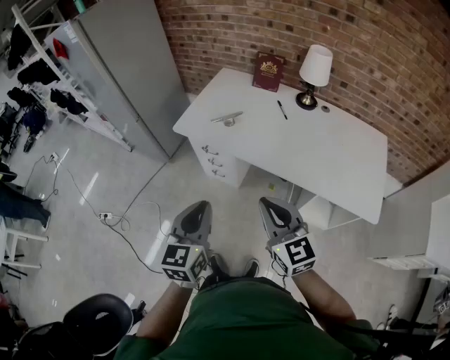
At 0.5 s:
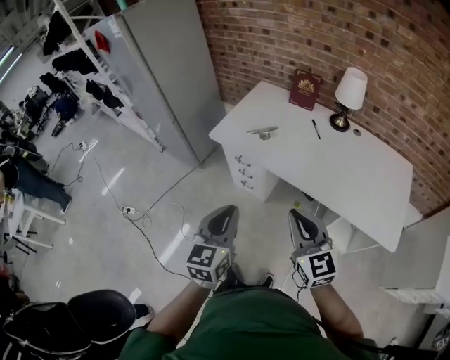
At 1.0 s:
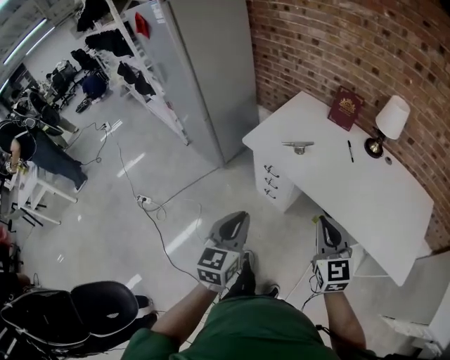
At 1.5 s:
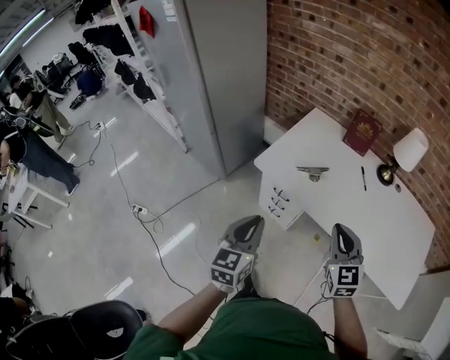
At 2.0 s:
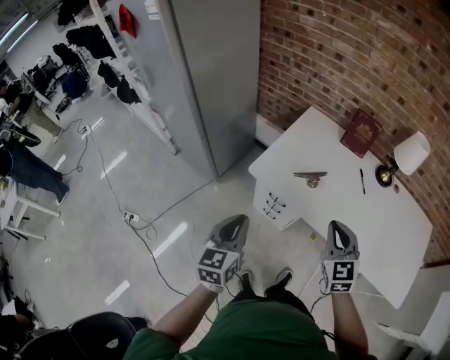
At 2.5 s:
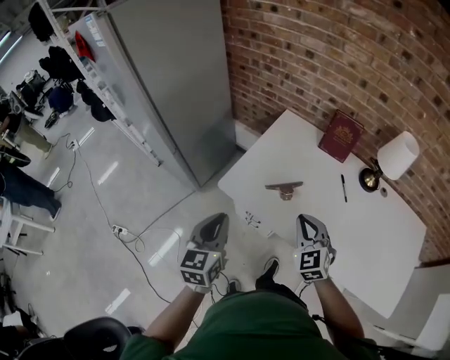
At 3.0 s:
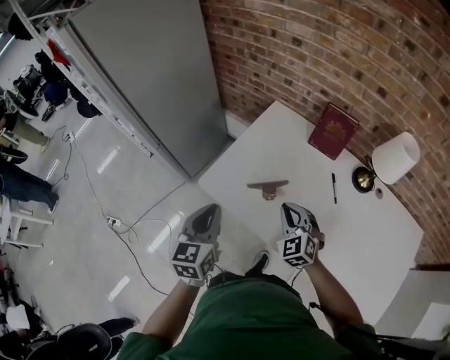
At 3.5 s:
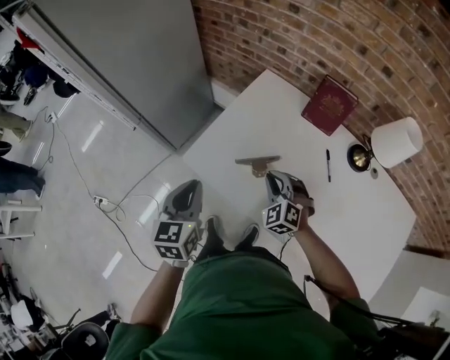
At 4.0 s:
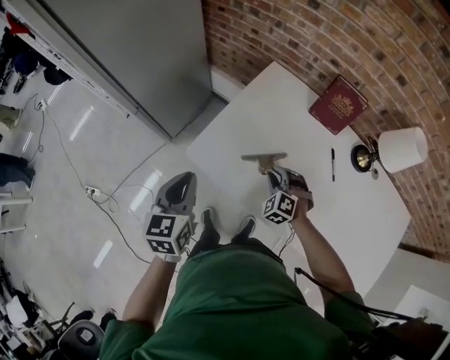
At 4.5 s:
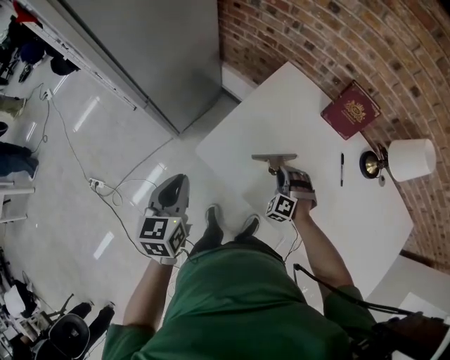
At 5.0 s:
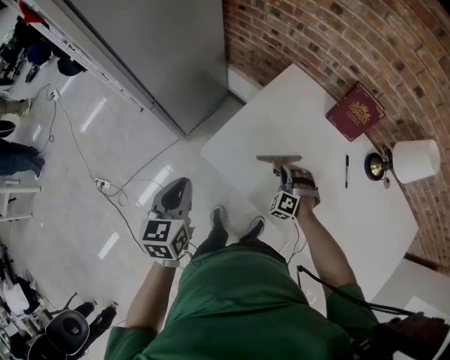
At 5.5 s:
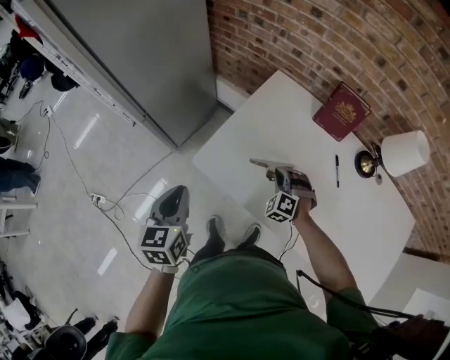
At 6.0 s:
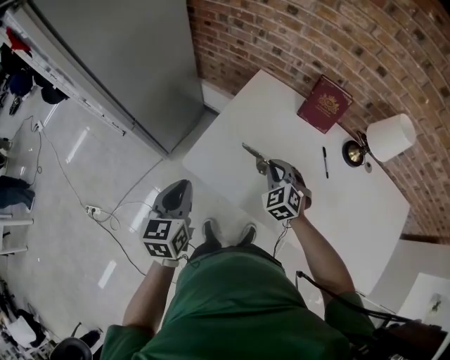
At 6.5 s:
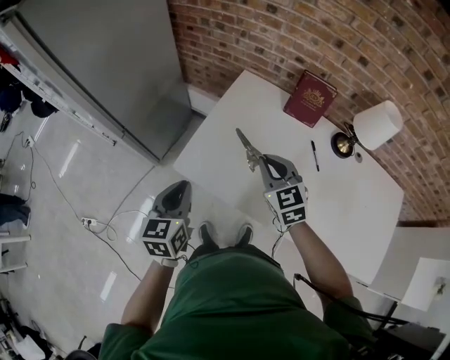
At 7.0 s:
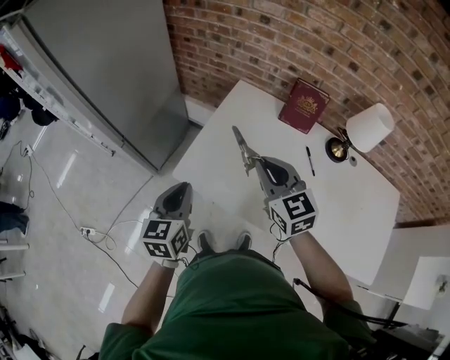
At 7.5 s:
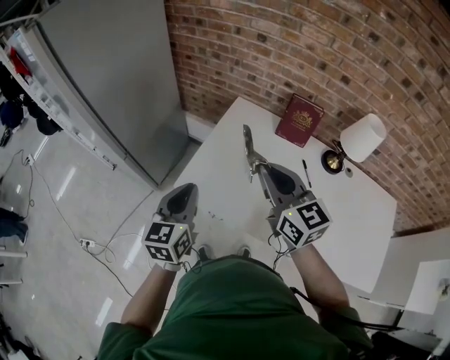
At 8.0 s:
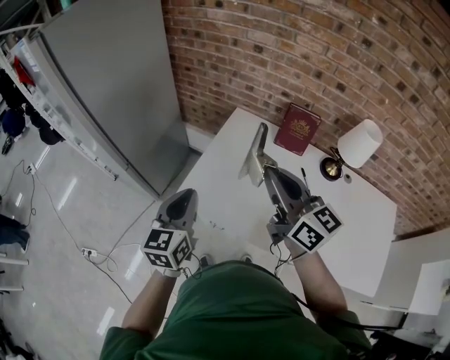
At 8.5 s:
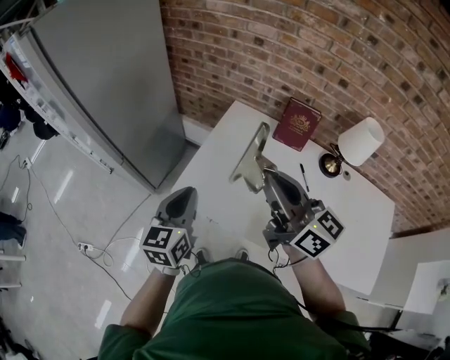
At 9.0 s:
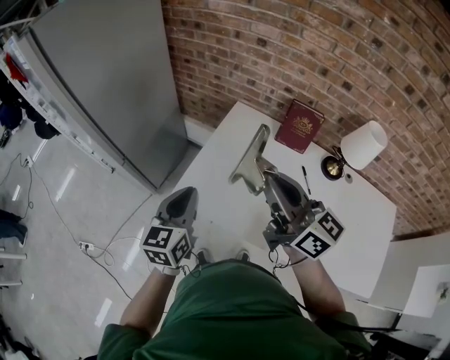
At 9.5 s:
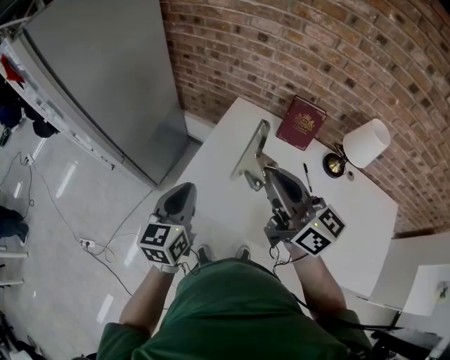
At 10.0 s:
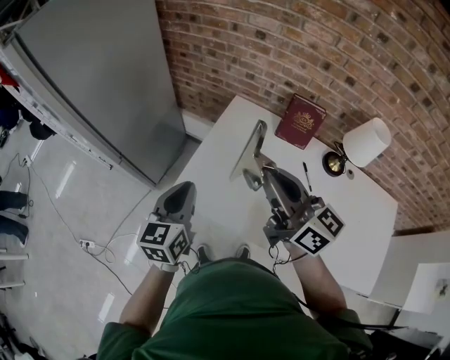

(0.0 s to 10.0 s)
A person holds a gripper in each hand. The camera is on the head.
0.0 s - 2.0 s: The right gripper is displaced forward by roughly 25 cm, and swivels approximately 20 degrees; the left gripper travels forward and to the left by roughly 30 cm.
2.0 s - 4.0 s: The right gripper travels downward and forward by approximately 35 cm, twists roughly 40 degrees counterclockwise, seen from behind, and opens up. The left gripper heads forward, covering some 20 cm.
4.0 s - 6.0 s: The right gripper shifts roughly 10 cm upward, and swivels some 20 degrees.
6.0 s - 8.0 s: The right gripper moves upward, roughly 30 cm, and tips its fingers upward by approximately 40 degrees. Meanwhile the left gripper goes approximately 10 cm upward.
8.0 s - 10.0 s: The left gripper ends up some 5 cm from where it was.

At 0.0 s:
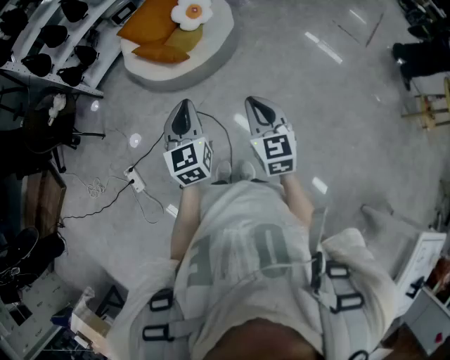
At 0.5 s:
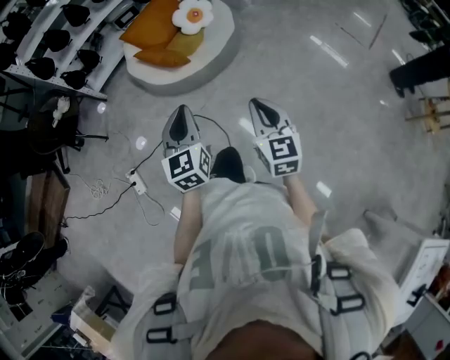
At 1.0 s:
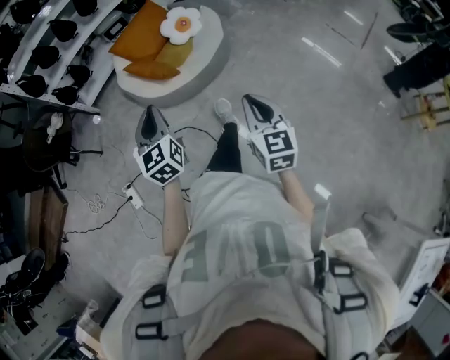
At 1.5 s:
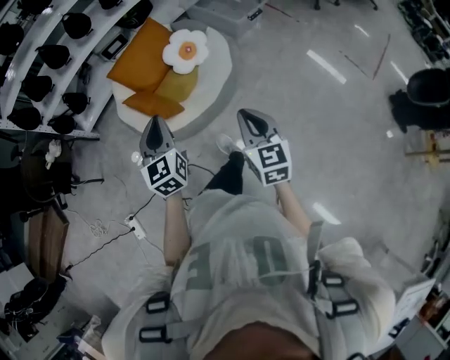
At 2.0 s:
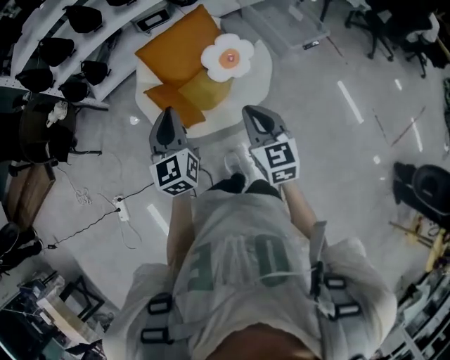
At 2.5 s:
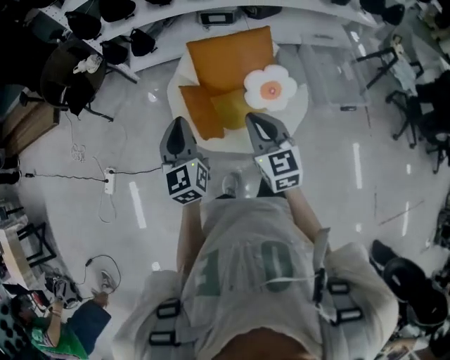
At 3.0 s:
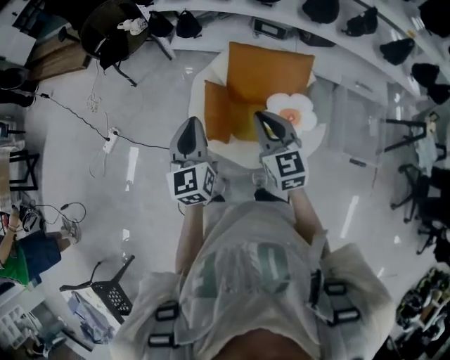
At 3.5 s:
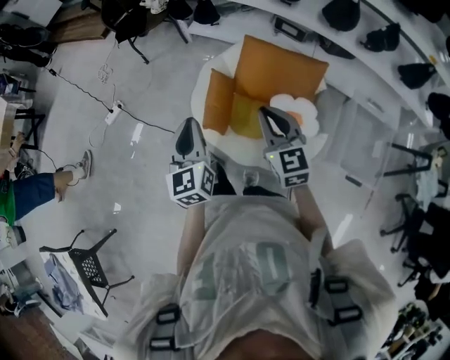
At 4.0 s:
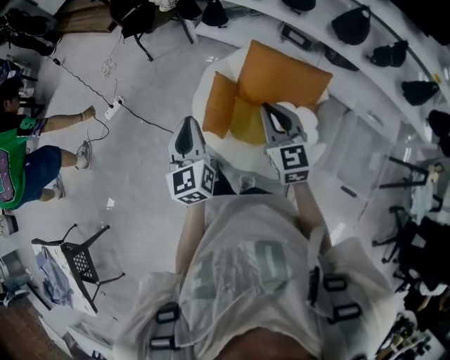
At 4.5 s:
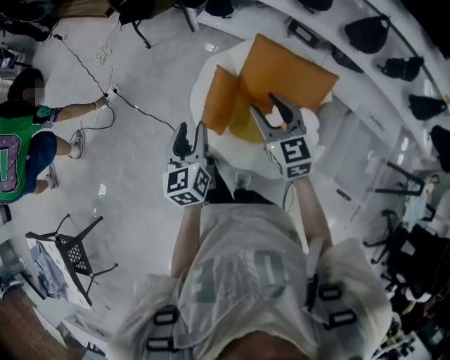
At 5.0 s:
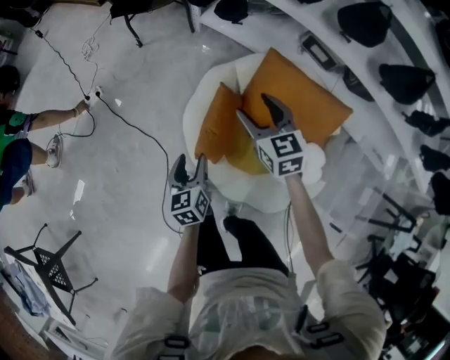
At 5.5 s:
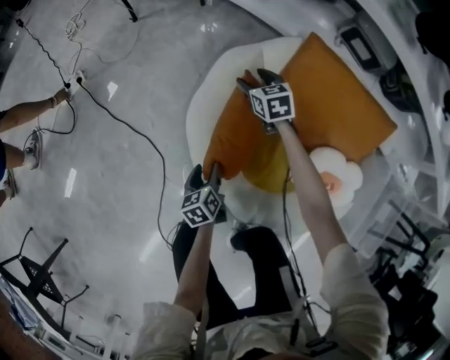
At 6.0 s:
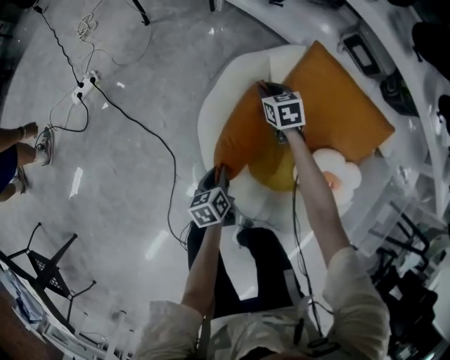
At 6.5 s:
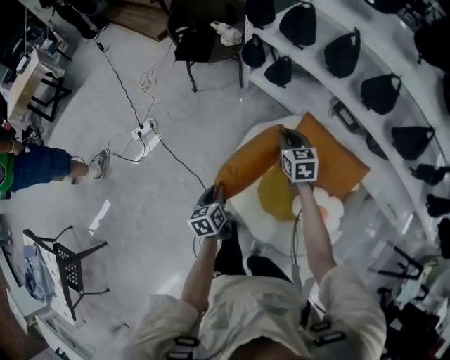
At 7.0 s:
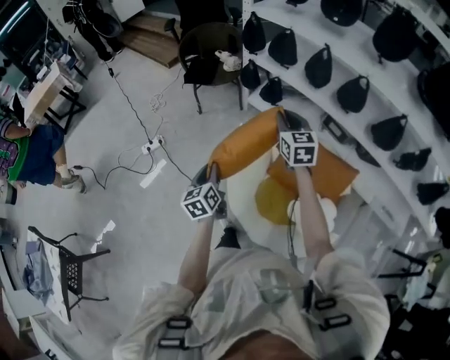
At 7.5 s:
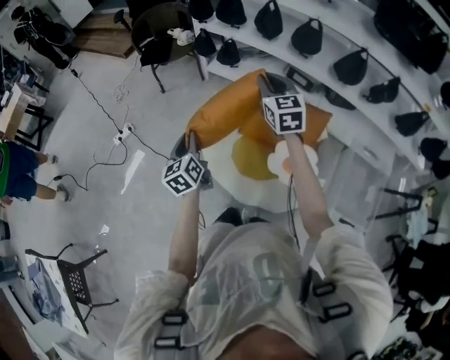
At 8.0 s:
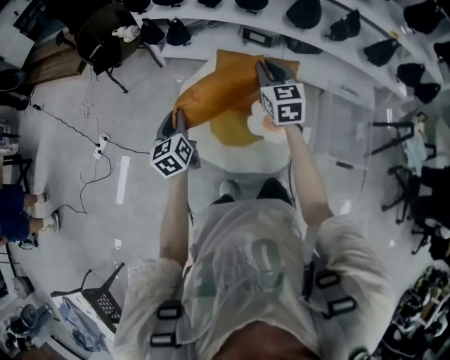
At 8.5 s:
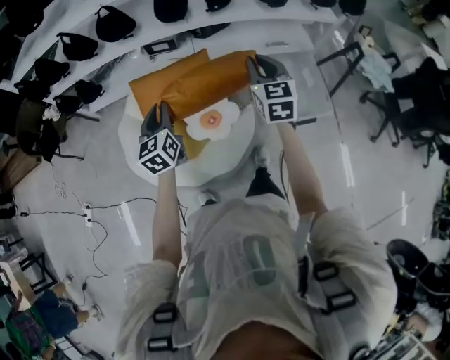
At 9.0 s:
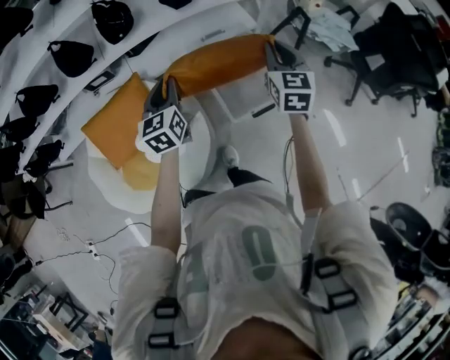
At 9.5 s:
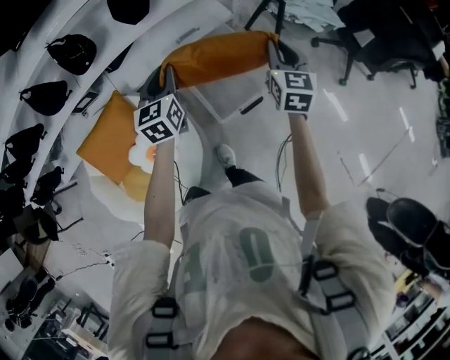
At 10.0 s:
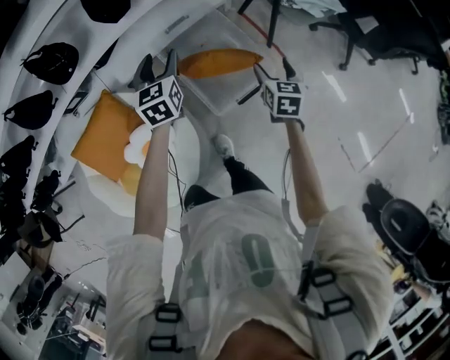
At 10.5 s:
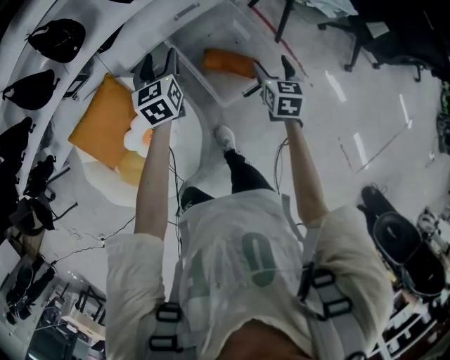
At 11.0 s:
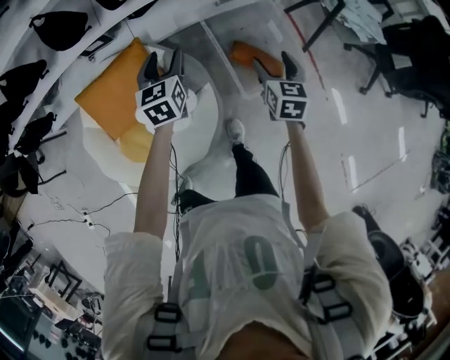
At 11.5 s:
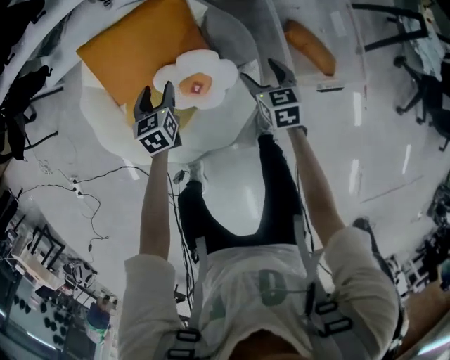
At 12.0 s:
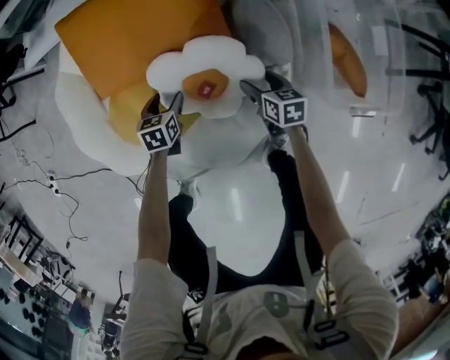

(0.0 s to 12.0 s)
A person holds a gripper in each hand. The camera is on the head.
0.0 s - 2.0 s: The pair of grippers is taken forward, approximately 50 cm. The right gripper rotates approximately 20 degrees, while the left gripper swivels about 20 degrees.
2.0 s - 4.0 s: The right gripper ends up roughly 25 cm from where it was, and swivels roughly 60 degrees. Meanwhile the left gripper shifts by roughly 5 cm, and turns by roughly 60 degrees.
4.0 s - 6.0 s: The right gripper is displaced downward and forward by some 60 cm, tips its fingers downward by approximately 40 degrees, and opens, then closes once more. The left gripper travels downward by about 50 cm, angles its fingers downward, by about 40 degrees, and opens, then closes once more.
6.0 s - 8.0 s: The left gripper heads upward, covering some 50 cm, and swivels approximately 40 degrees; the right gripper goes roughly 60 cm upward and backward, and tilts its fingers roughly 30 degrees upward.
8.0 s - 10.0 s: The two grippers travel together, about 90 cm. The left gripper swivels about 60 degrees, and opens its fingers. Meanwhile the right gripper turns by some 70 degrees, and opens.
10.0 s - 12.0 s: Both grippers are carried roughly 50 cm. The left gripper goes some 60 cm downward, and points its fingers approximately 30 degrees further downward. The right gripper changes its angle by some 50 degrees.

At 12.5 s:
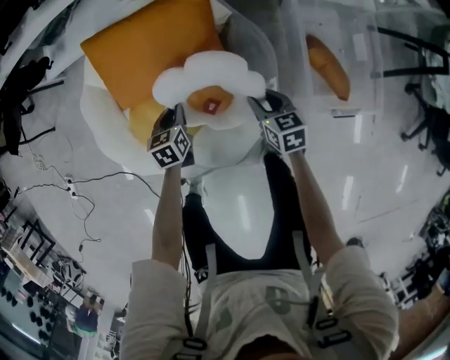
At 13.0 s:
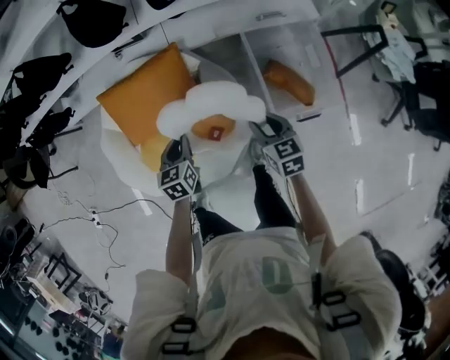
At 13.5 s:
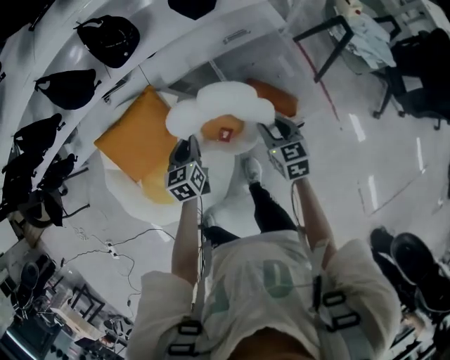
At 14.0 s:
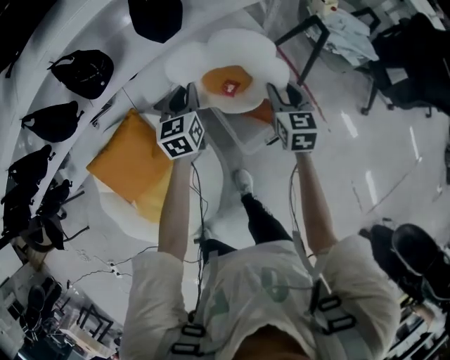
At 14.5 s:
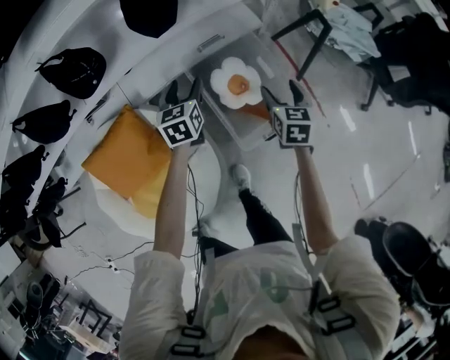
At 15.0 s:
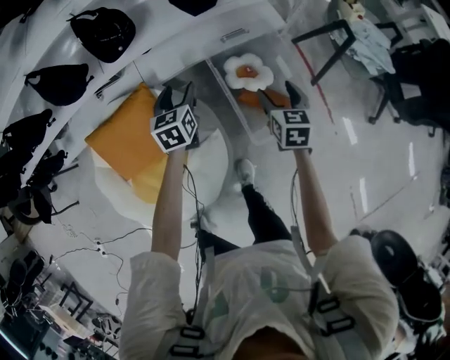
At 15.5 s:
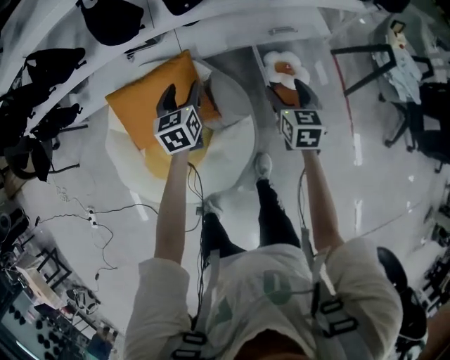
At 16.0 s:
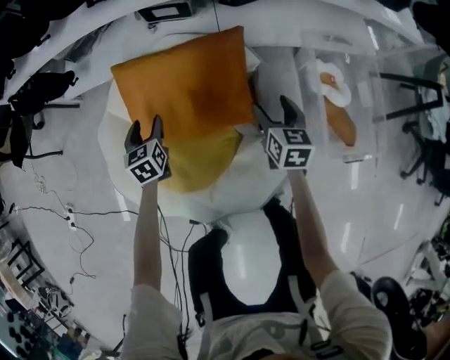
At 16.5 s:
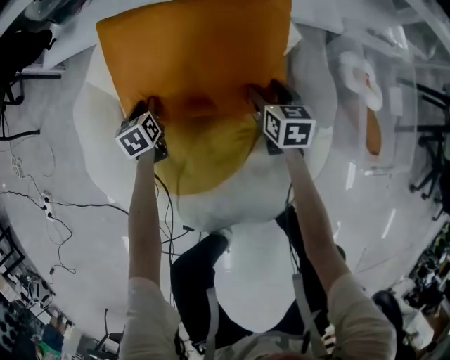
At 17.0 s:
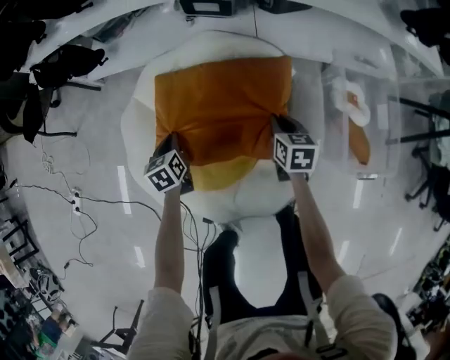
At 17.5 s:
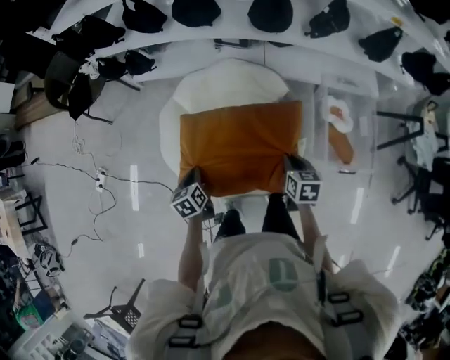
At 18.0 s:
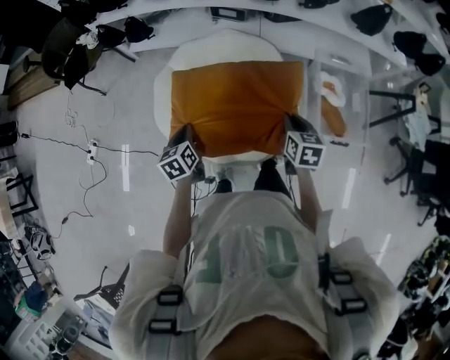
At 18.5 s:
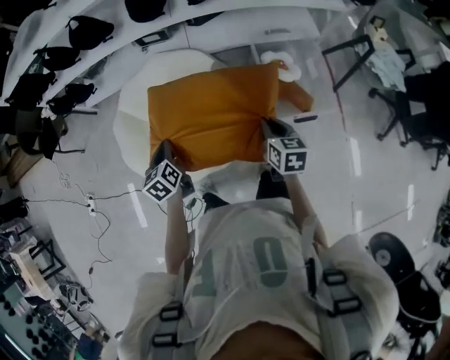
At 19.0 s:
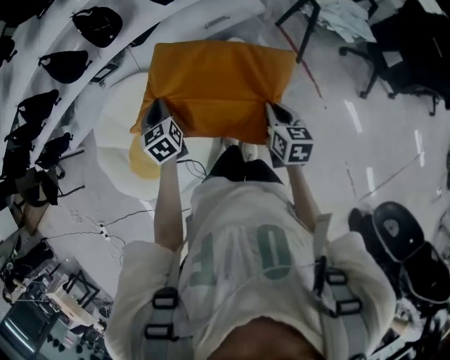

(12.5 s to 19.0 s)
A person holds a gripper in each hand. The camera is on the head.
12.5 s - 14.5 s: Both grippers are carried approximately 50 cm. The right gripper swivels about 40 degrees, and opens, while the left gripper swivels about 30 degrees, and opens up.
14.5 s - 17.0 s: The pair of grippers is taken about 70 cm. The left gripper rotates some 40 degrees, and closes up. Meanwhile the right gripper swivels about 30 degrees, and closes up.
17.0 s - 19.0 s: The two grippers travel together, to the right, about 50 cm. Both grippers travel together upward, roughly 35 cm. The right gripper changes its angle by some 30 degrees. Meanwhile the left gripper swivels about 30 degrees.
